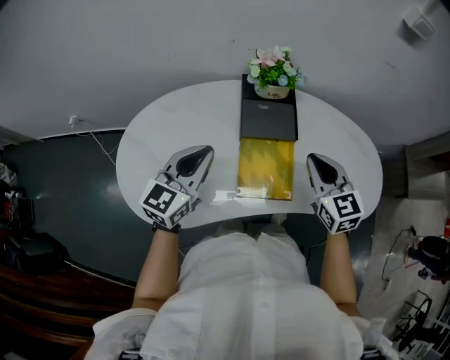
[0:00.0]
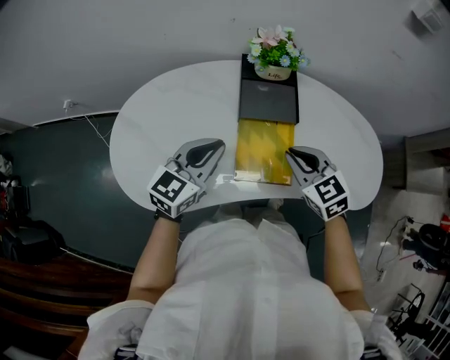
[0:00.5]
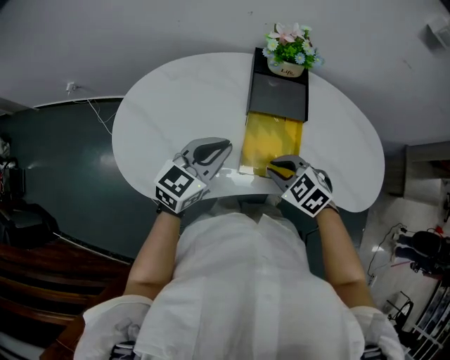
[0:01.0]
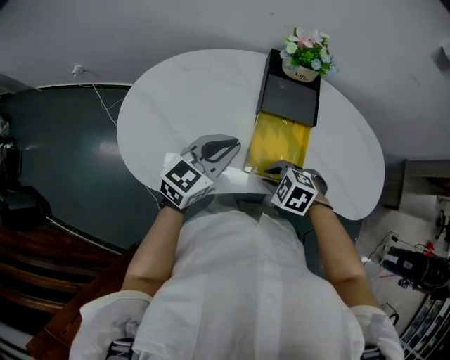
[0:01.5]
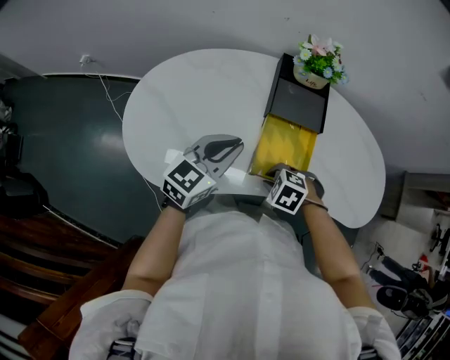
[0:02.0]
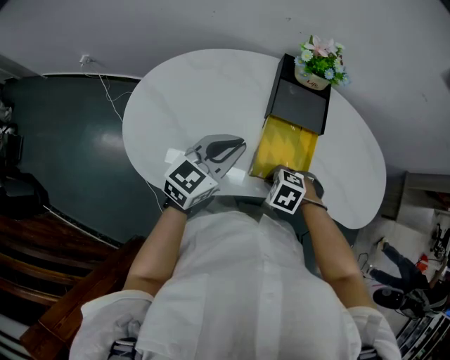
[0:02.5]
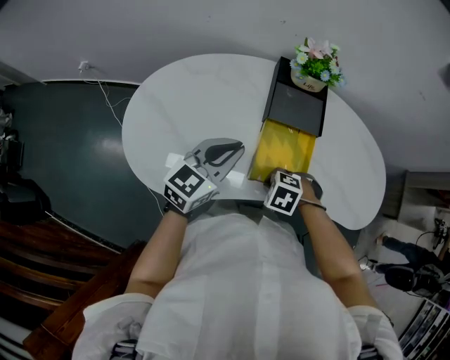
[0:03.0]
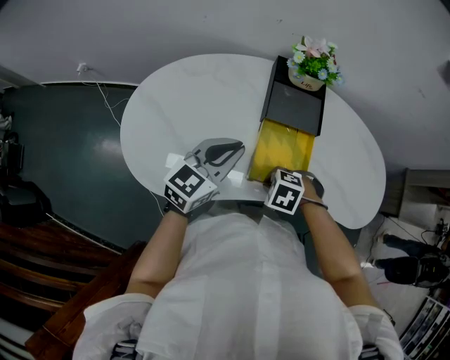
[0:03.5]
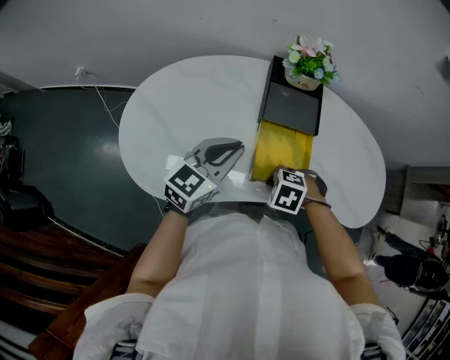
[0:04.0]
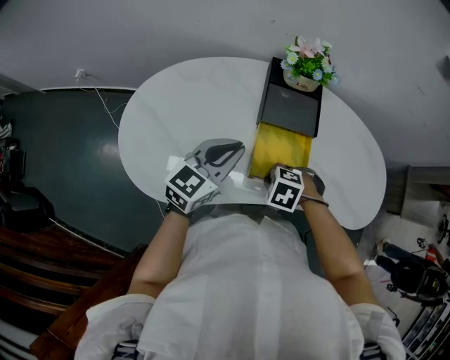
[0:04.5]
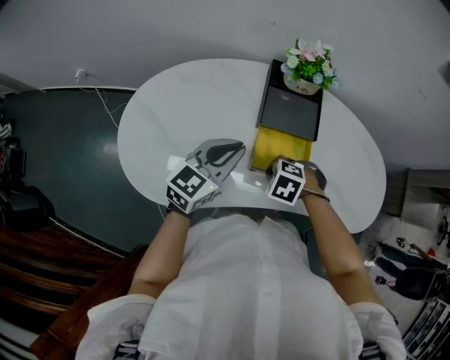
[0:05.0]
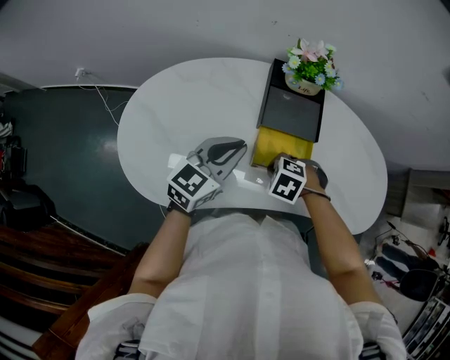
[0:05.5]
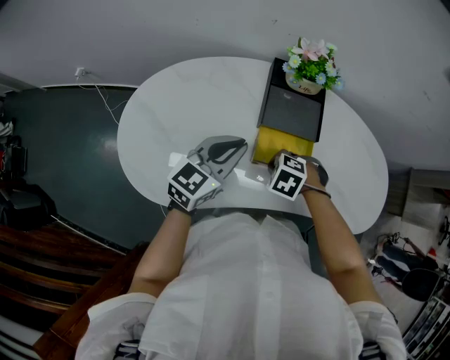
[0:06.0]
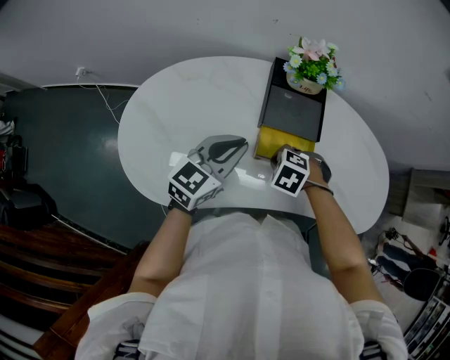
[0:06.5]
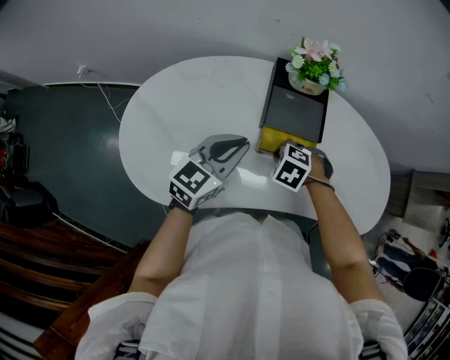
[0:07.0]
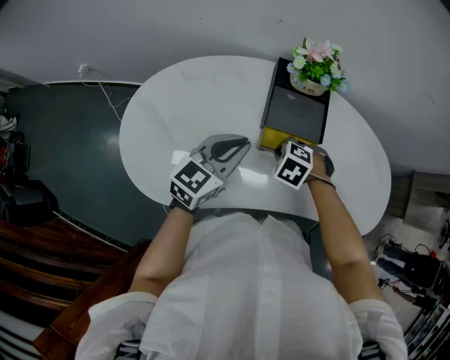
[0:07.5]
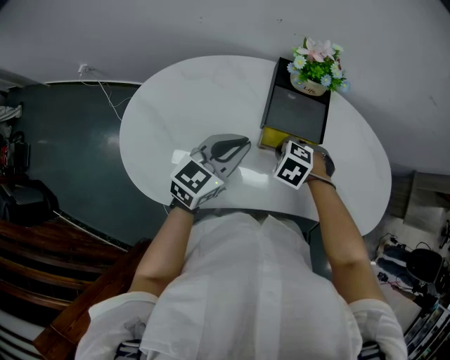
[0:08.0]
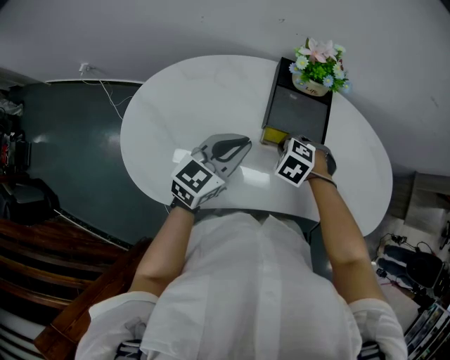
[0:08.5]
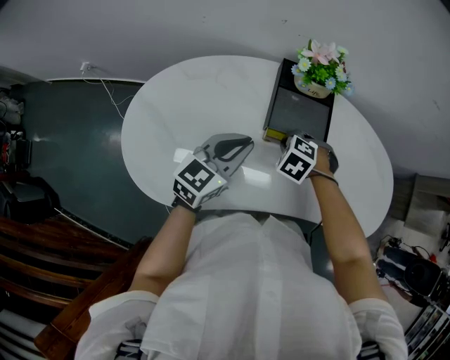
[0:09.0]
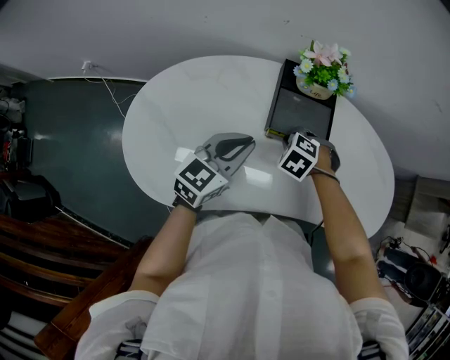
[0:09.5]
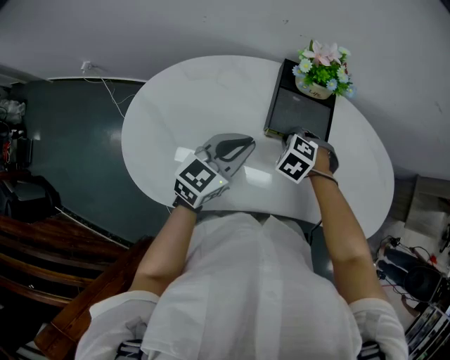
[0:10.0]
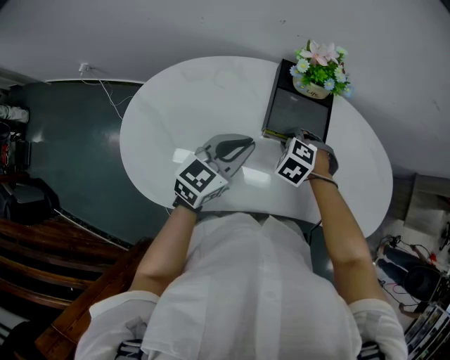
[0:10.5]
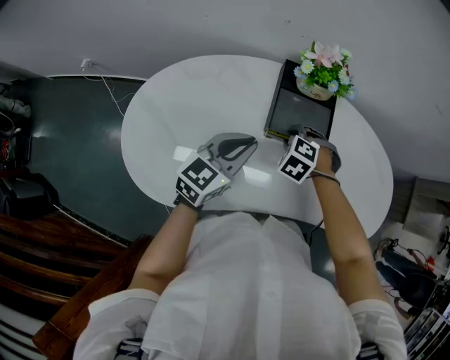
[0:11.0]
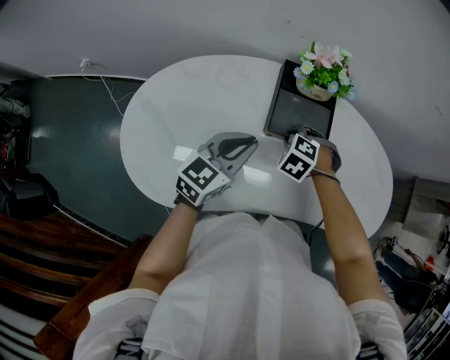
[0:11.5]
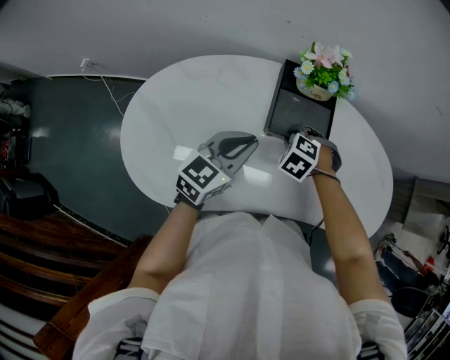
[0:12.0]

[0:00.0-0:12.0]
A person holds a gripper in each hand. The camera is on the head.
0:00.0 to 0:02.0: The left gripper travels downward by some 5 cm; the right gripper goes some 20 cm downward, and points its fingers approximately 50 degrees further downward.
0:02.0 to 0:04.0: The grippers make only small movements.
0:04.0 to 0:06.0: The right gripper moves about 10 cm.
0:06.0 to 0:08.0: The right gripper changes place by roughly 5 cm.
0:08.0 to 0:10.0: The right gripper shifts by roughly 5 cm.
0:10.0 to 0:12.0: The two grippers keep their place.

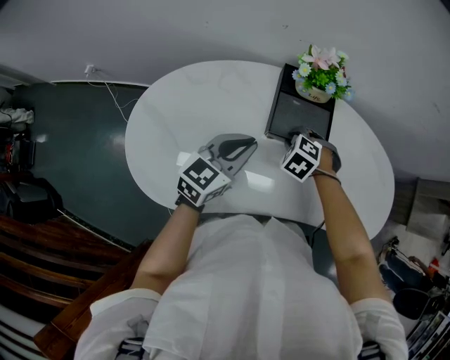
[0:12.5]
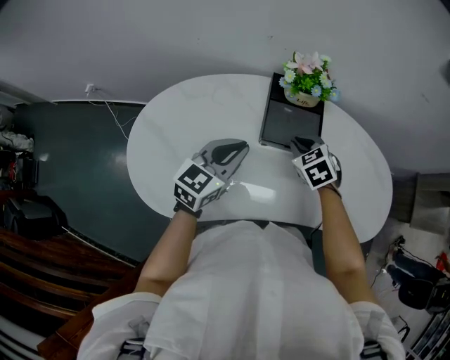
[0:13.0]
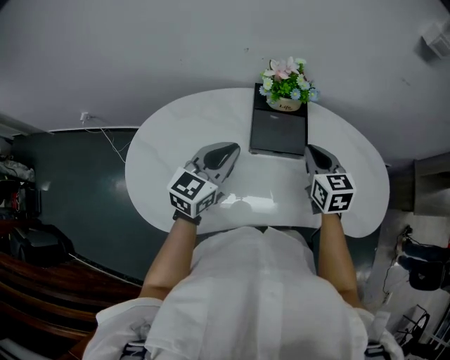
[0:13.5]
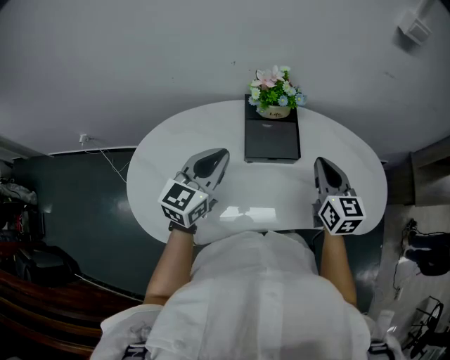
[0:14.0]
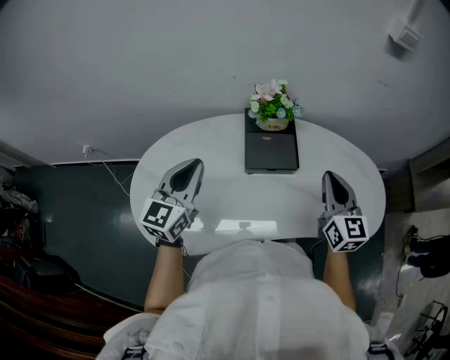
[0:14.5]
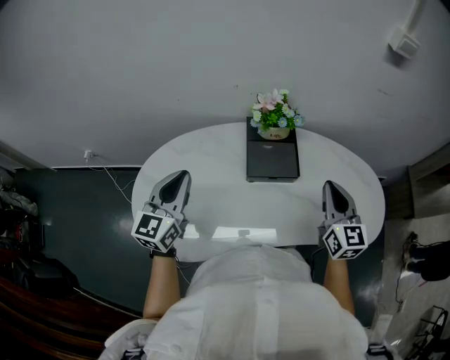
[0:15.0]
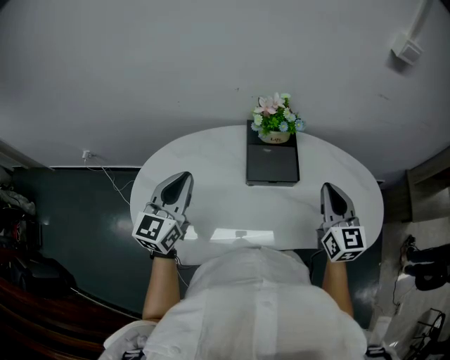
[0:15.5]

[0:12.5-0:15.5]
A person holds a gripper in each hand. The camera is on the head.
0:12.5 to 0:14.0: The left gripper travels upward by about 10 cm. Meanwhile the right gripper goes about 25 cm upward and to the right, and tilts its fingers some 50 degrees upward.
0:14.0 to 0:15.5: The left gripper shifts some 10 cm to the left.

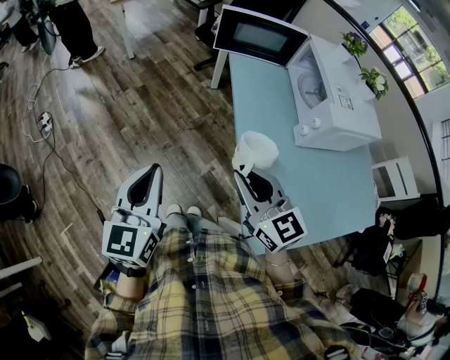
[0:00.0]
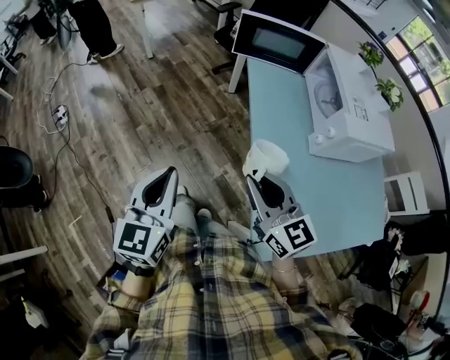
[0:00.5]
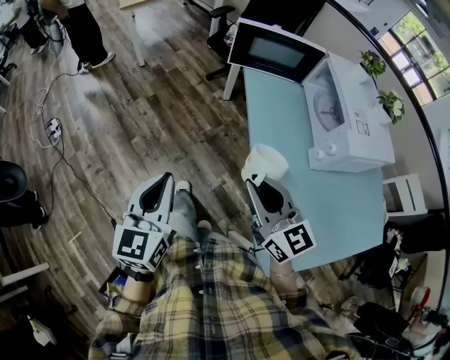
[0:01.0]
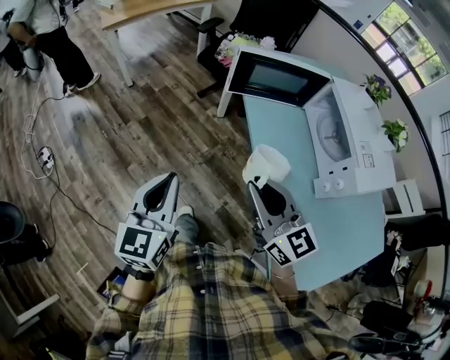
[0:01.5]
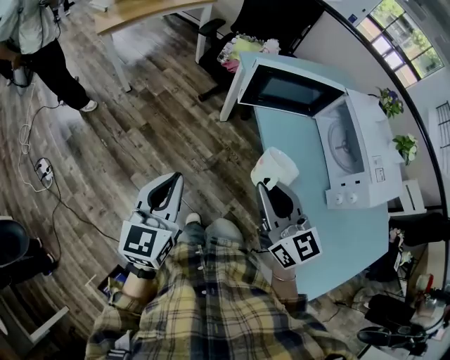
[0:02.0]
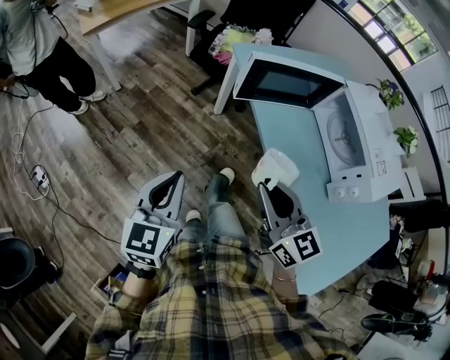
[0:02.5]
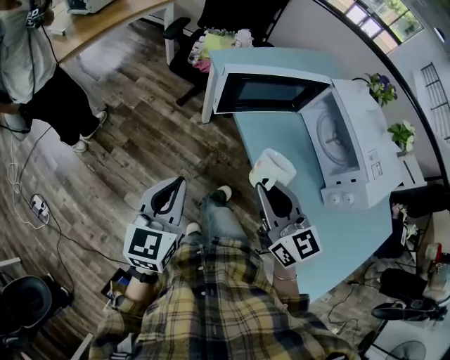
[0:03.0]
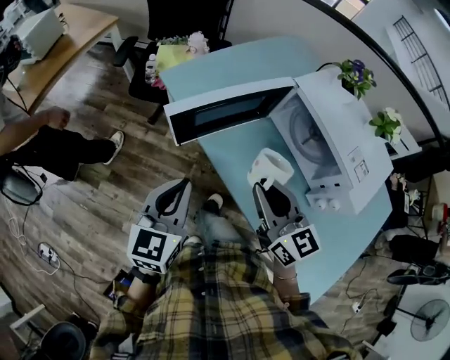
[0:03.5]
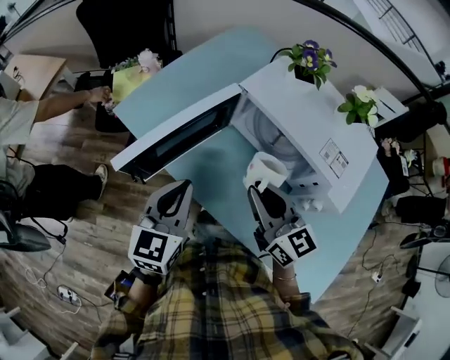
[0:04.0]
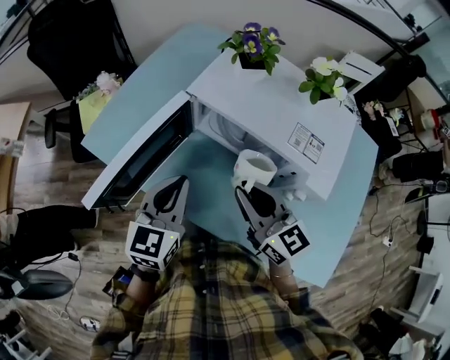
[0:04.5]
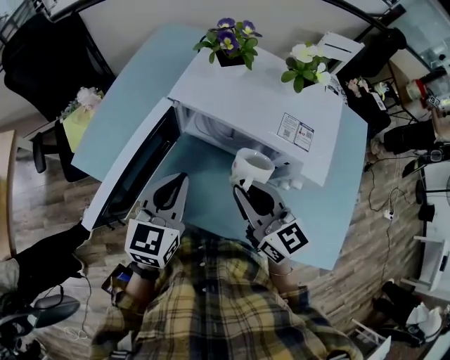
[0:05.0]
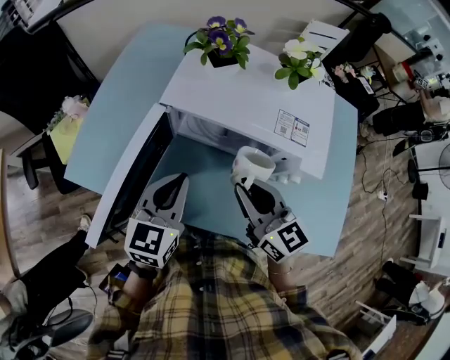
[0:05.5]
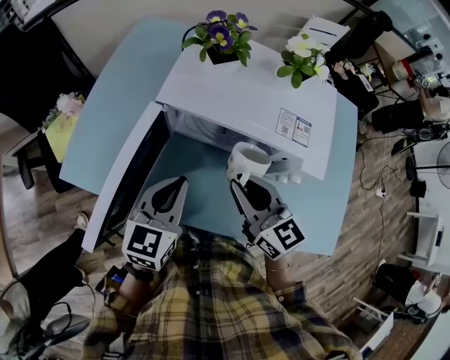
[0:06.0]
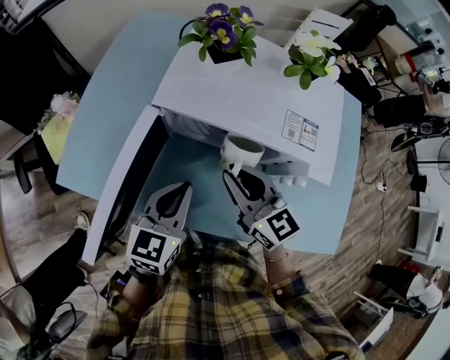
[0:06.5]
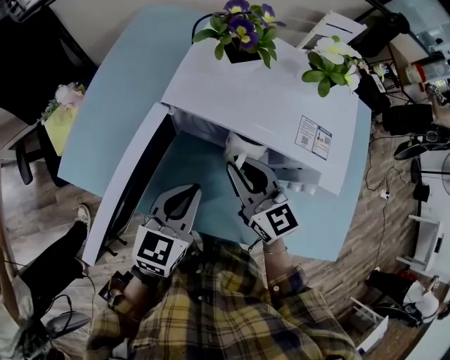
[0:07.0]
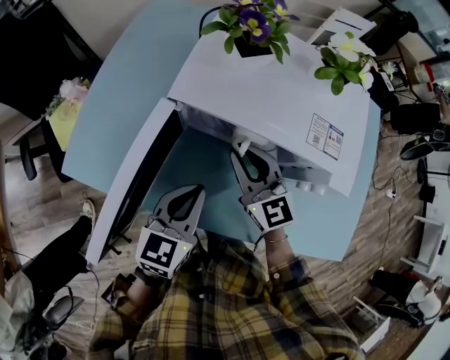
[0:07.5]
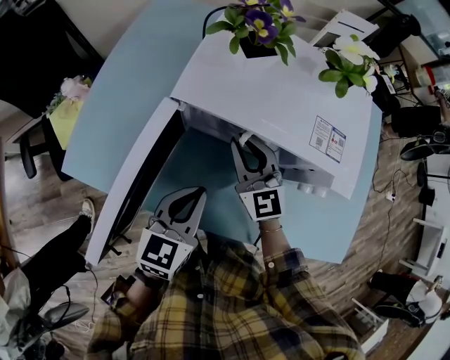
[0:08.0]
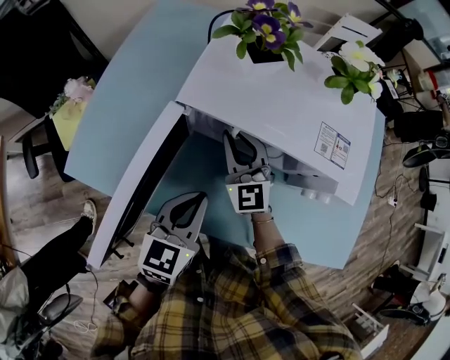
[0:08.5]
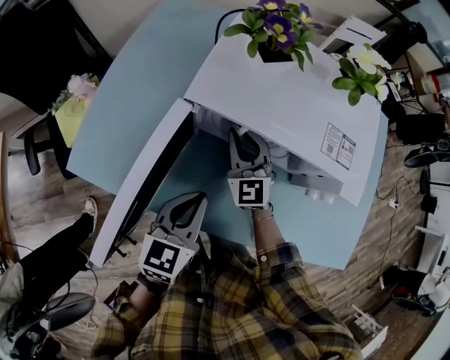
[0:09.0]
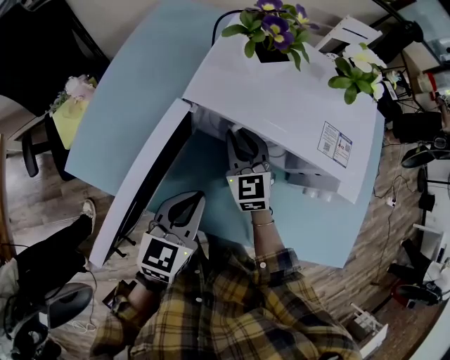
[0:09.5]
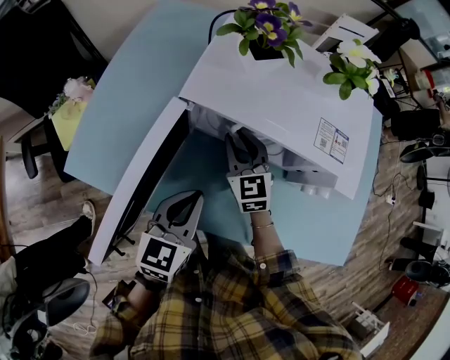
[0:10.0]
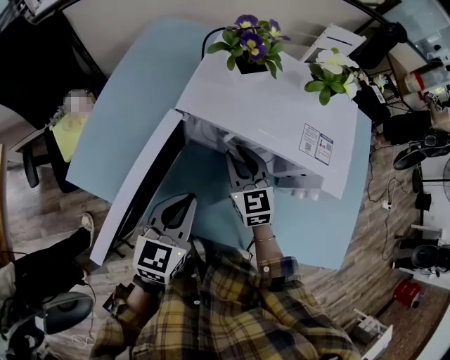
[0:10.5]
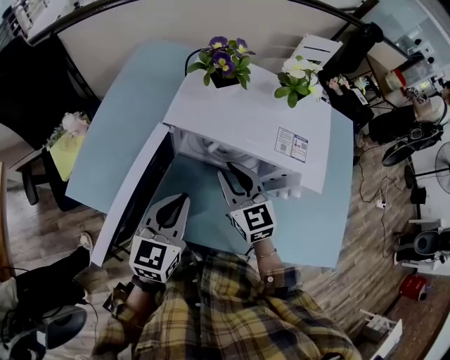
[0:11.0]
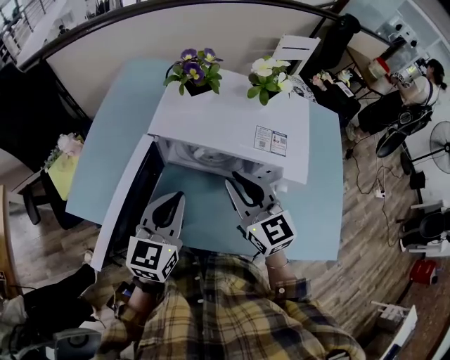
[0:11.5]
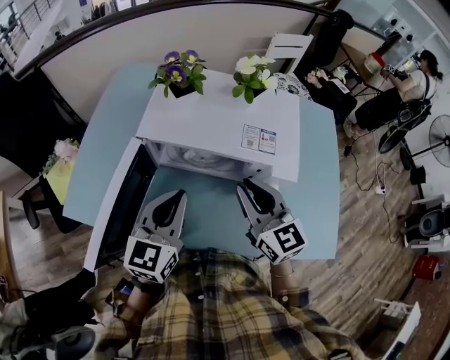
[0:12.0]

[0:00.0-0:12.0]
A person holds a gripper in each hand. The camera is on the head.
0:00.0 to 0:02.0: The two grippers go about 30 cm forward.
0:02.0 to 0:04.0: The right gripper changes place by roughly 30 cm, and changes its angle by approximately 30 degrees. The left gripper moves approximately 40 cm, and rotates roughly 40 degrees.
0:04.0 to 0:06.0: The left gripper shifts by some 15 cm, and swivels roughly 30 degrees. The right gripper changes place by some 5 cm, and turns by roughly 20 degrees.
0:06.0 to 0:08.0: The right gripper is displaced forward and downward by about 15 cm, and rotates some 20 degrees.
0:08.0 to 0:10.0: The right gripper is displaced downward by approximately 5 cm.
0:10.0 to 0:12.0: The right gripper heads upward, to the right and backward, covering about 25 cm; the left gripper goes approximately 10 cm upward and to the right.
